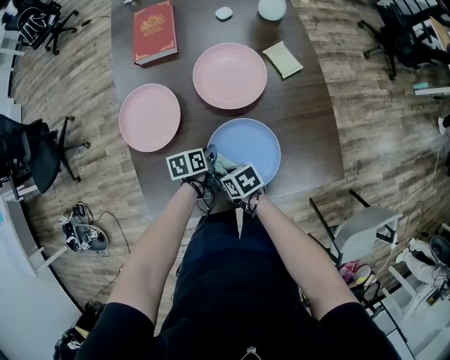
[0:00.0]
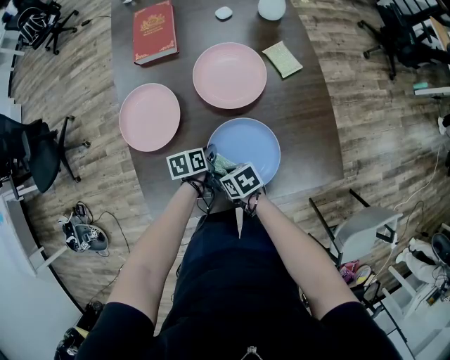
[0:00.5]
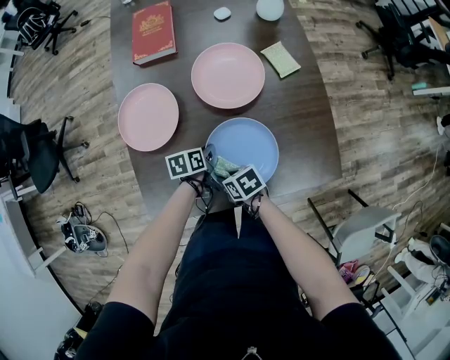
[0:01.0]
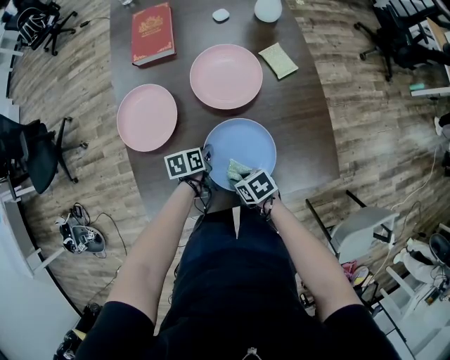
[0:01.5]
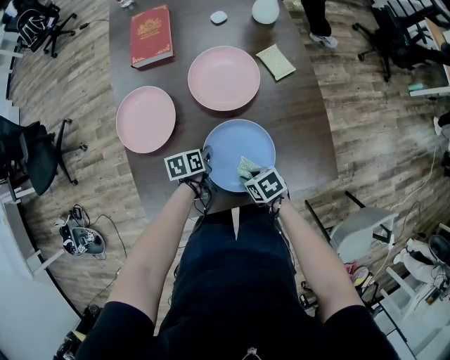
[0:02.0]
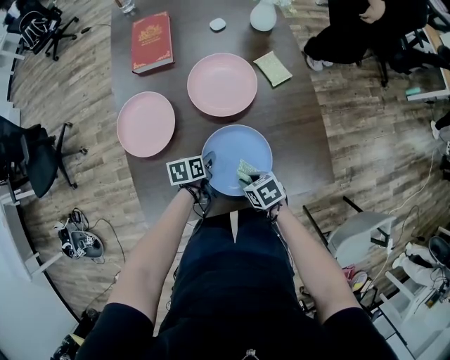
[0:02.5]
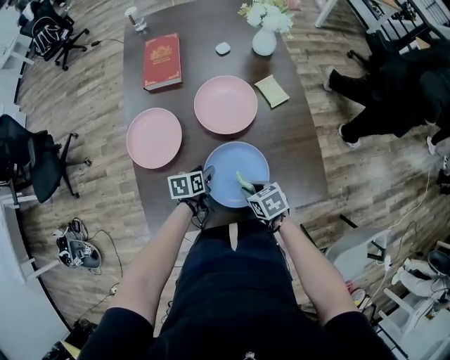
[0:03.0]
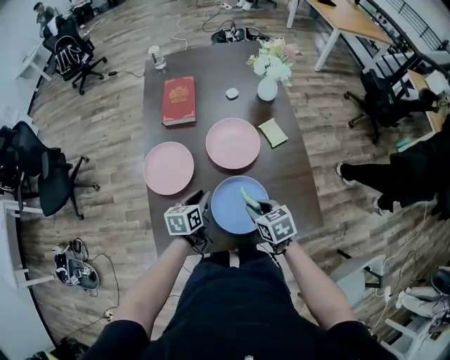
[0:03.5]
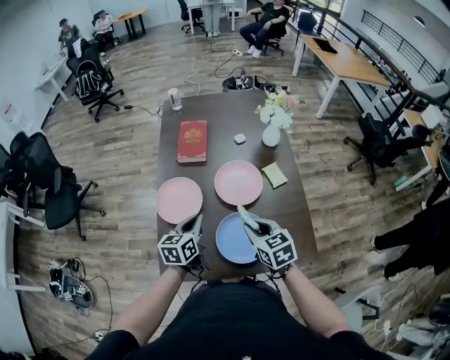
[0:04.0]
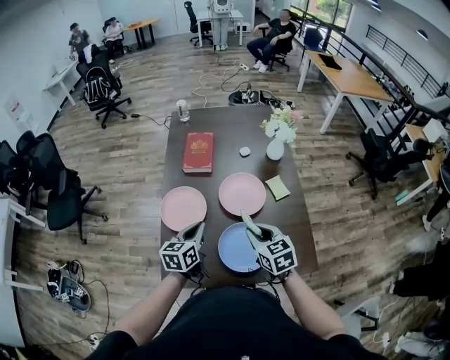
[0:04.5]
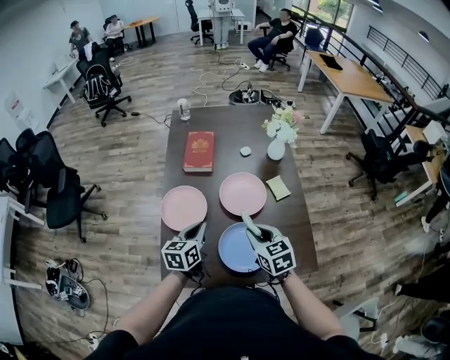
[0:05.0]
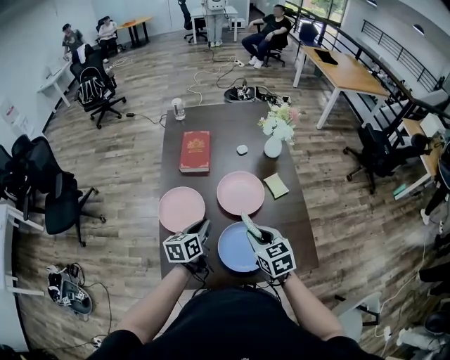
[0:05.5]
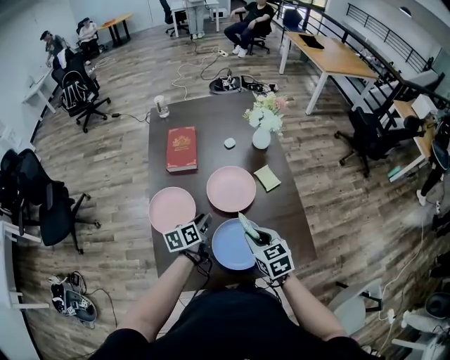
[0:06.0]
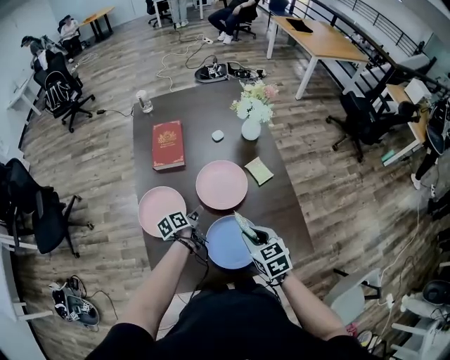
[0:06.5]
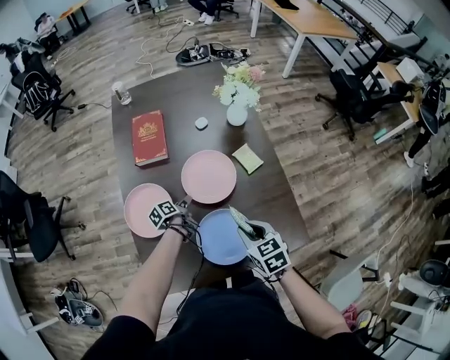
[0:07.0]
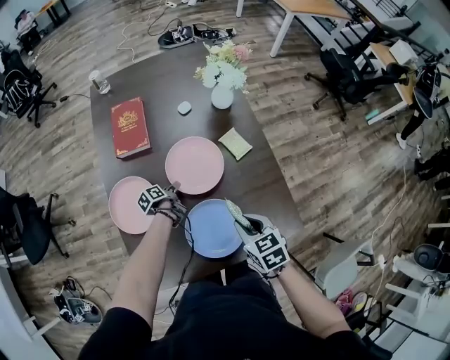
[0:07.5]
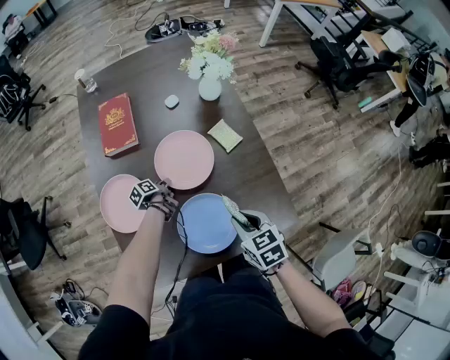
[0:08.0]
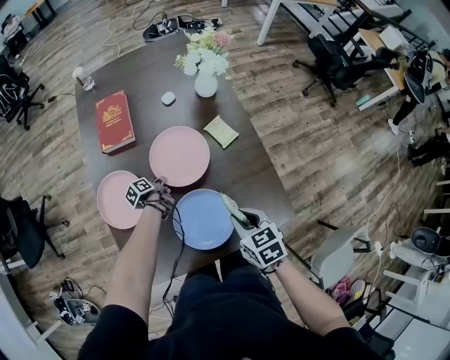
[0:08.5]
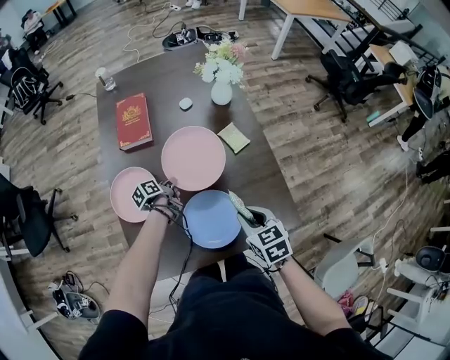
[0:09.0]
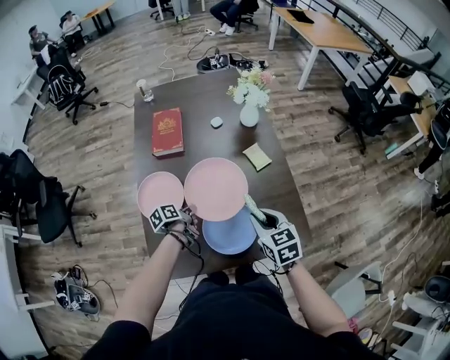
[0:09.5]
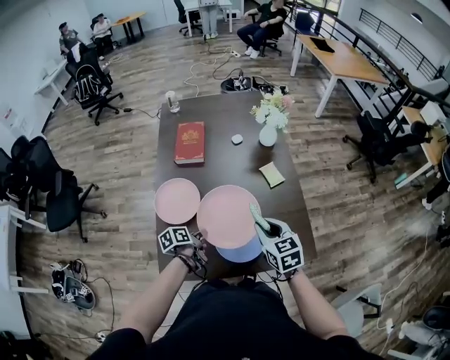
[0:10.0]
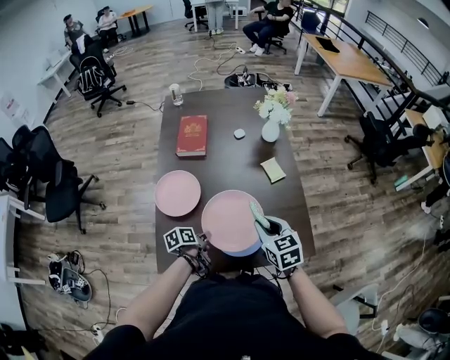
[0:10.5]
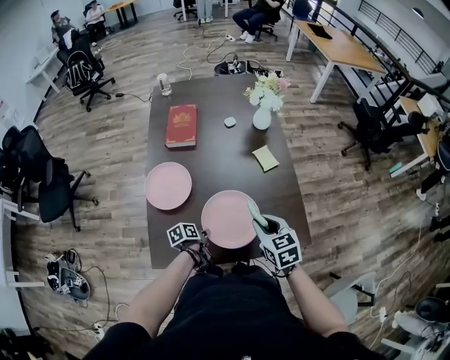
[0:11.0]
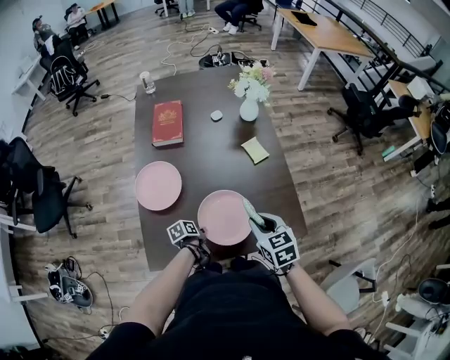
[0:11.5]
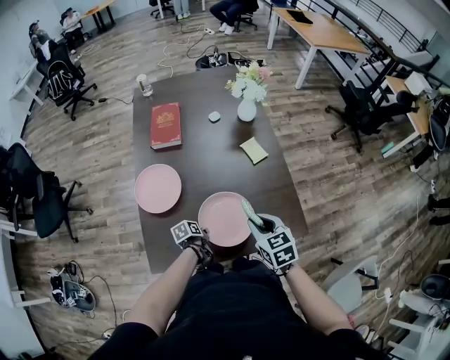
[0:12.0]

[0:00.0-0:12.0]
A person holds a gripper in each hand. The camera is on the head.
0:00.0 to 0:02.0: The right gripper ends up approximately 10 cm from where it was.
0:02.0 to 0:04.0: The right gripper travels upward by some 30 cm, and turns by roughly 40 degrees.
0:06.0 to 0:08.0: The right gripper changes place by roughly 10 cm.
0:08.0 to 0:10.0: The right gripper moves upward, roughly 10 cm.
0:10.0 to 0:12.0: The right gripper ends up approximately 5 cm from where it was.

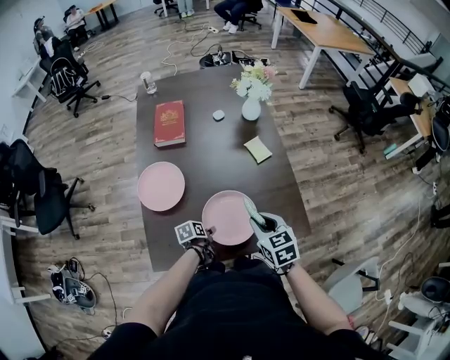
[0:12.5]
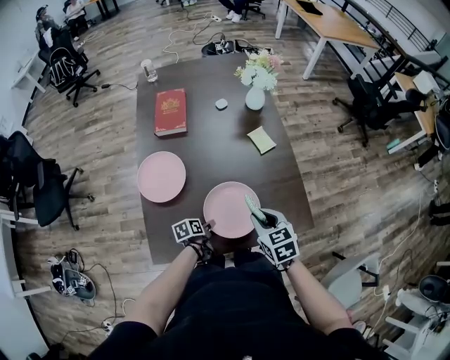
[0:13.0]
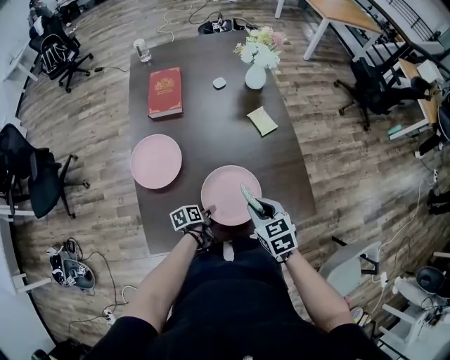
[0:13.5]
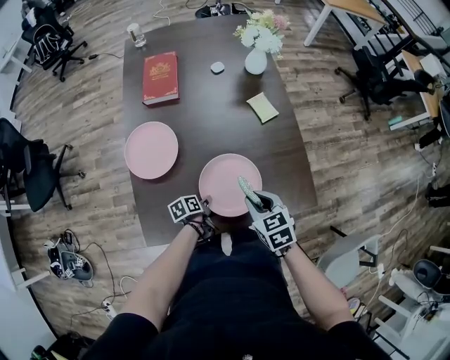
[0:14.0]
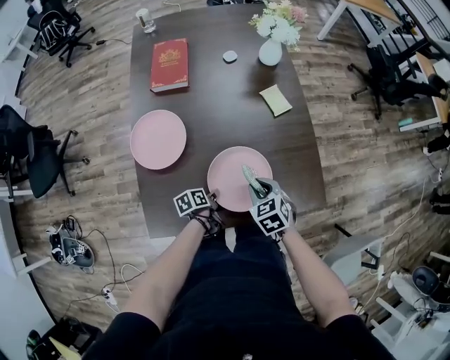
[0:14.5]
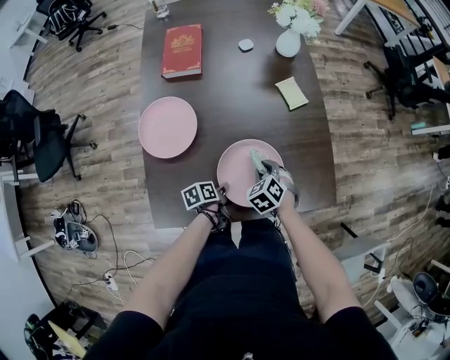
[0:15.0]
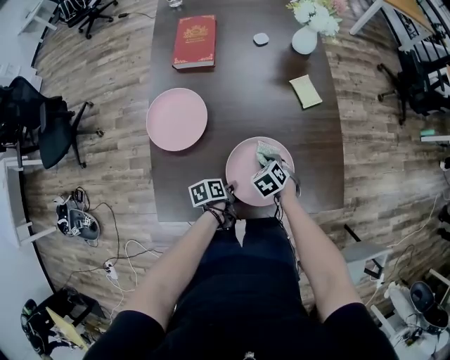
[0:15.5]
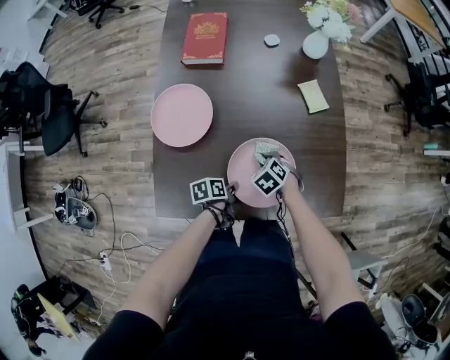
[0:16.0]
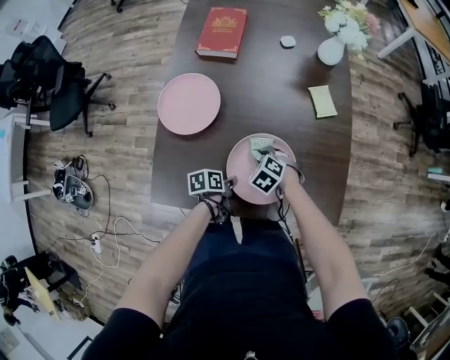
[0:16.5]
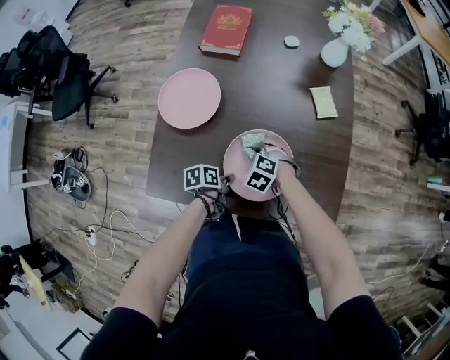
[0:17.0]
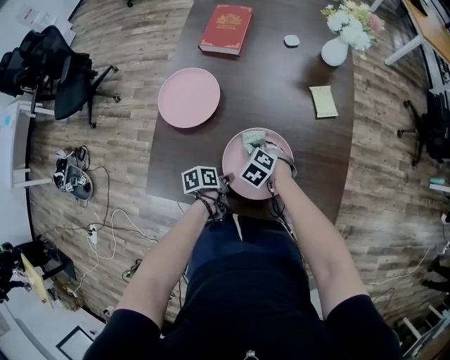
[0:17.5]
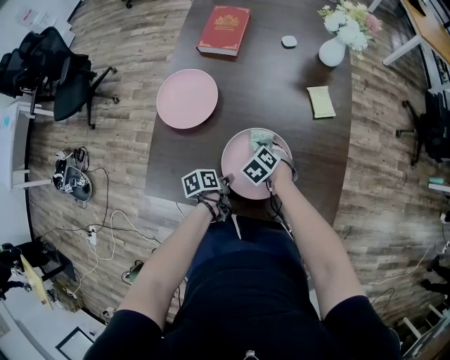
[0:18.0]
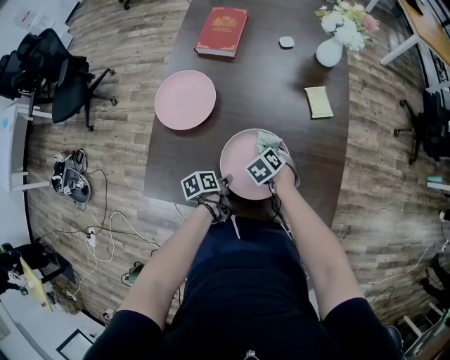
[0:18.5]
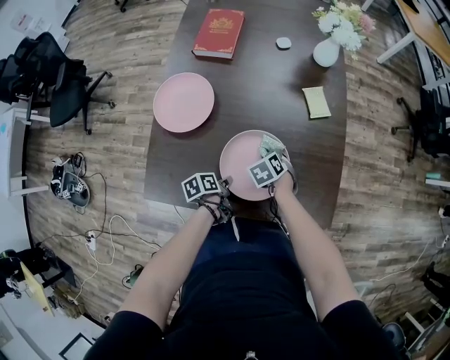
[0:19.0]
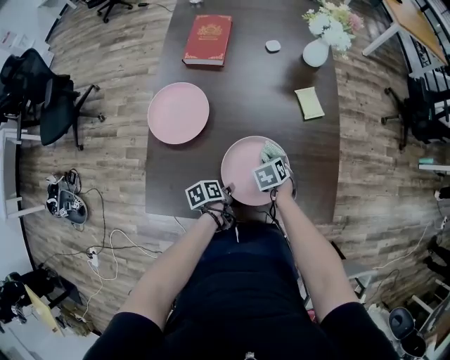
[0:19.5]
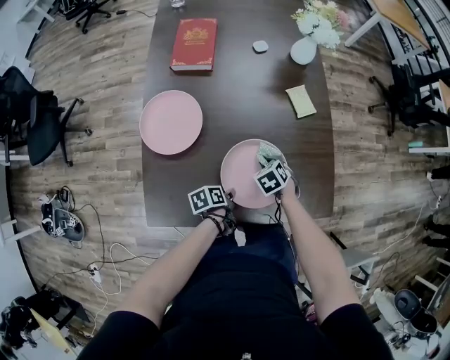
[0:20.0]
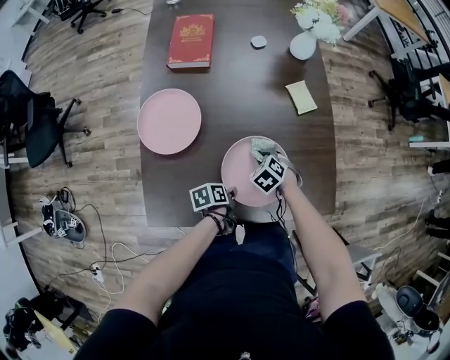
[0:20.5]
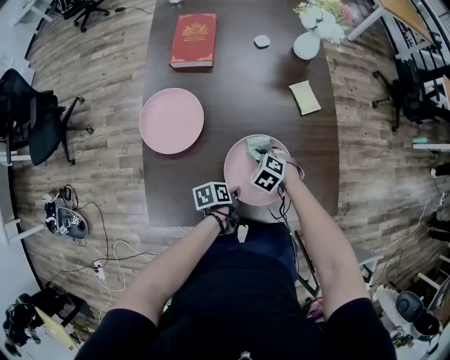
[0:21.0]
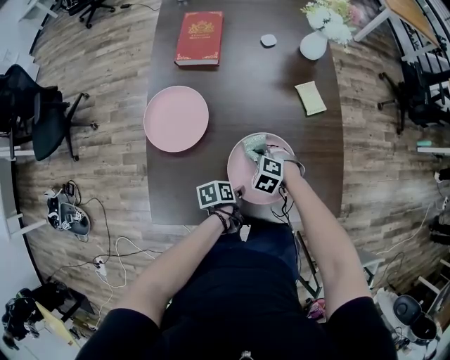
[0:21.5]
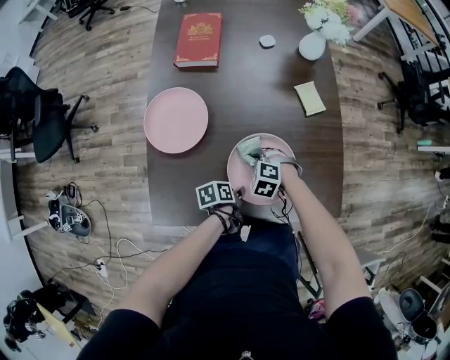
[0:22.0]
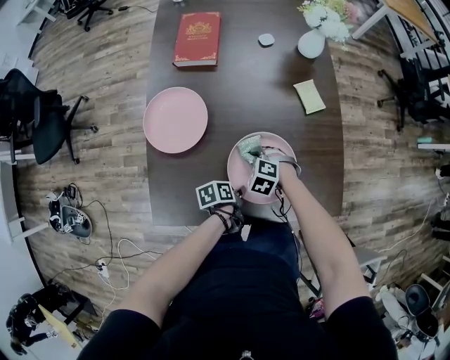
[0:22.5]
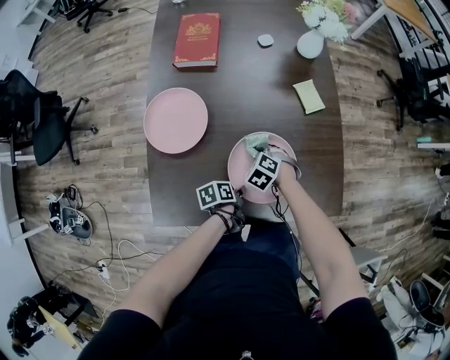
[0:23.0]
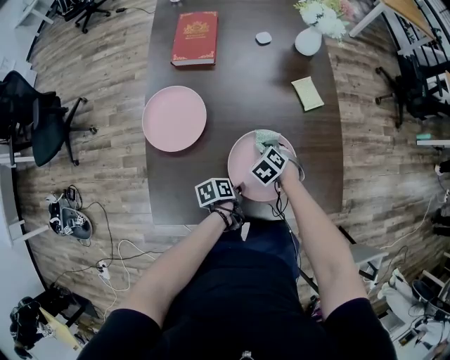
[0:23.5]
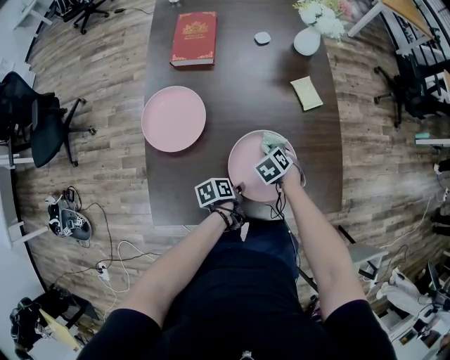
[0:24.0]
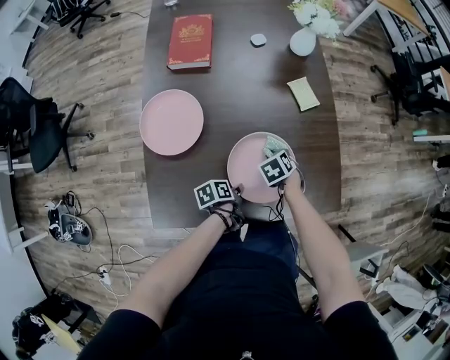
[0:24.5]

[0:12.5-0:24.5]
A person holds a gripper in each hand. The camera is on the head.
0:12.5 to 0:14.5: The right gripper heads downward, covering about 15 cm.
0:14.5 to 0:16.5: The right gripper heads downward, covering some 10 cm, and swivels about 40 degrees.
0:20.5 to 0:22.5: The right gripper changes place by approximately 5 cm, and rotates about 20 degrees.
0:22.5 to 0:24.5: The right gripper ends up about 10 cm from where it was, and rolls clockwise, seen from behind, by roughly 50 degrees.

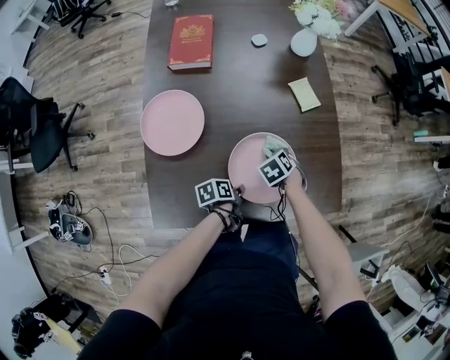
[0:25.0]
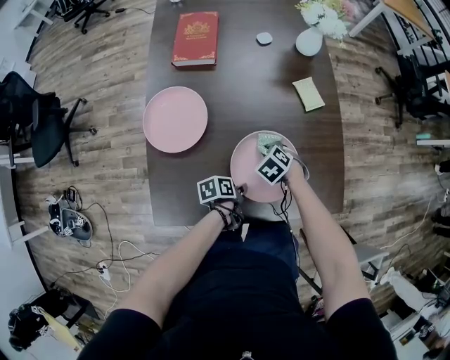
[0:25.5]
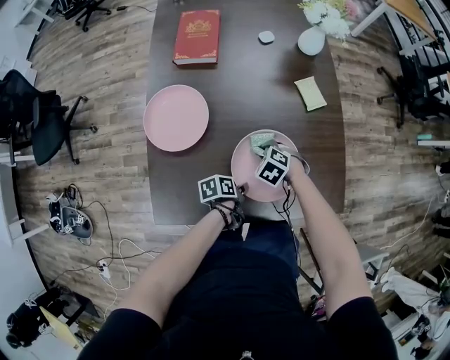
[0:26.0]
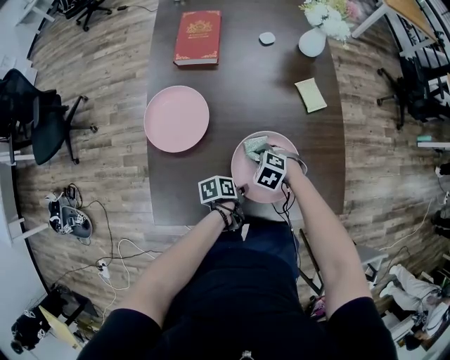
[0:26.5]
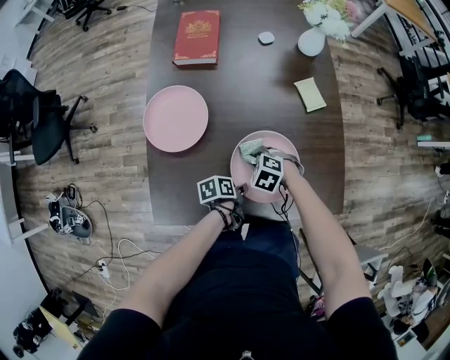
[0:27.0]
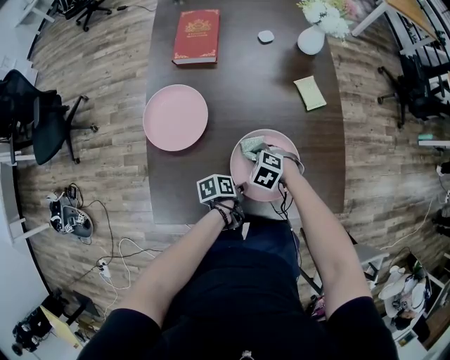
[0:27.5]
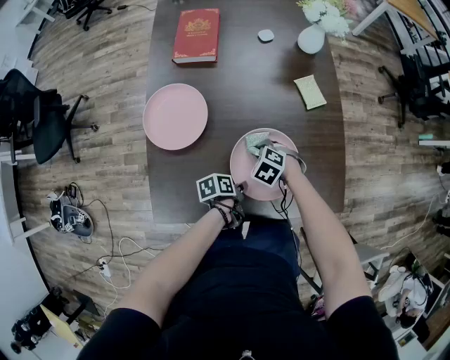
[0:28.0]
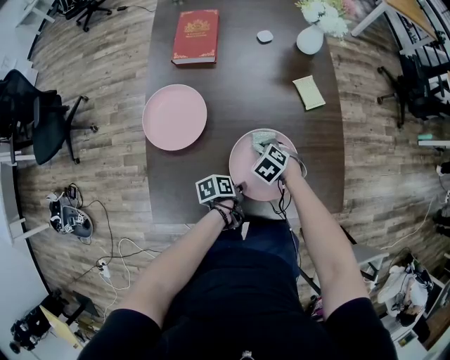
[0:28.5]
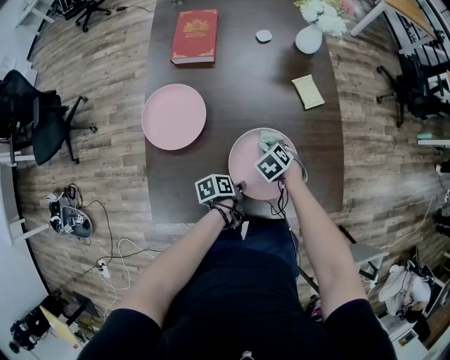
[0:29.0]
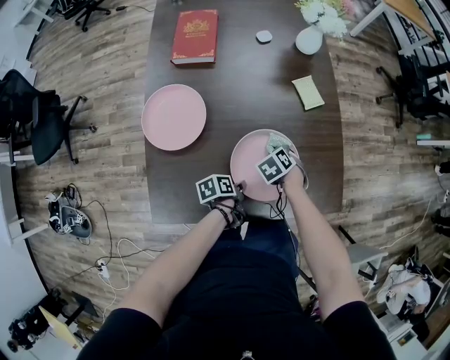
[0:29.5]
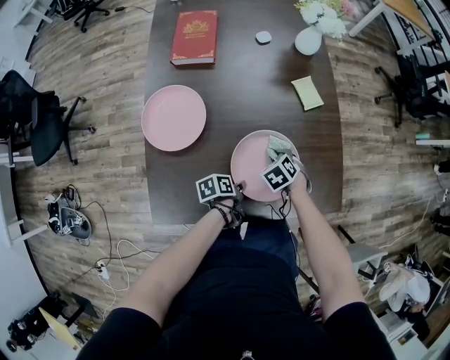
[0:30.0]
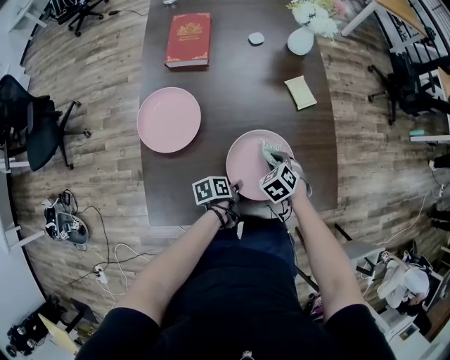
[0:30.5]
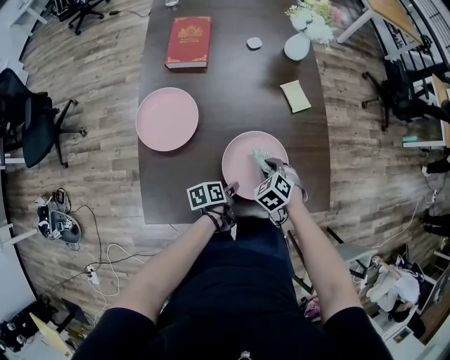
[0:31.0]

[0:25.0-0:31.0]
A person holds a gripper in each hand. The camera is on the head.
0:25.0 to 0:27.0: The right gripper ends up some 10 cm from where it was, and rotates some 40 degrees.
0:27.0 to 0:29.0: The right gripper ends up about 5 cm from where it was, and rotates roughly 30 degrees.
0:29.0 to 0:31.0: The right gripper shifts by roughly 10 cm.
